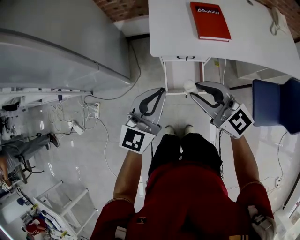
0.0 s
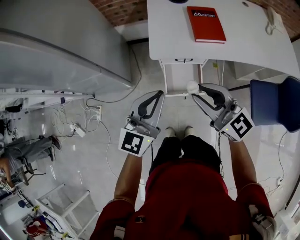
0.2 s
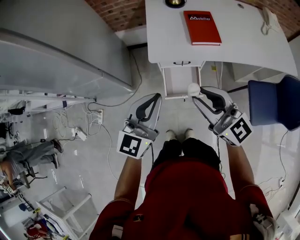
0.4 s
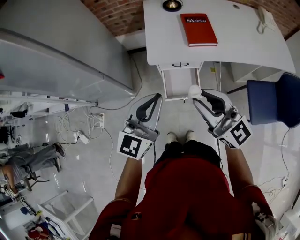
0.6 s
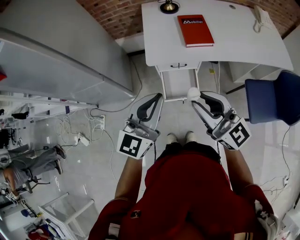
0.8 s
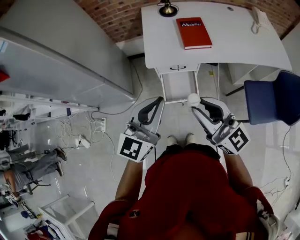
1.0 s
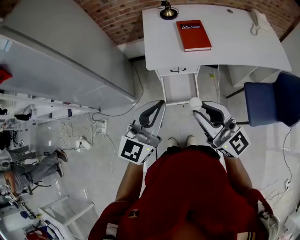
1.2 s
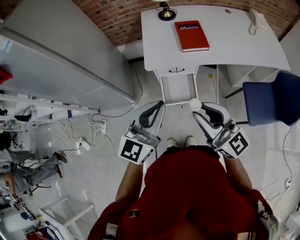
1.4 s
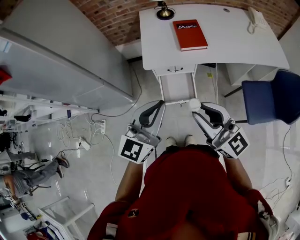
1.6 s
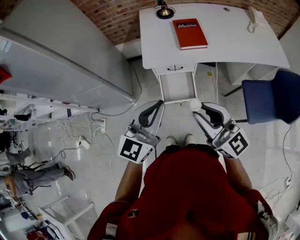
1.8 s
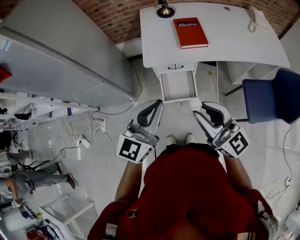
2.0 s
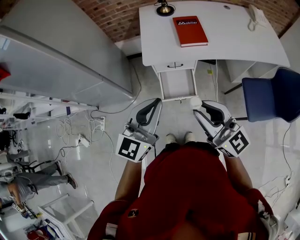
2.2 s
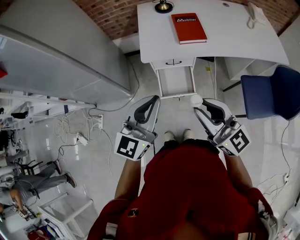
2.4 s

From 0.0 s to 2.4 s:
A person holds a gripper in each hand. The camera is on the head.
From 0.0 s to 1.2 s: The right gripper moves backward, upward and to the right, approximately 15 cm; the left gripper goes roughly 15 cm upward and backward.
From 1.2 s to 2.4 s: The grippers make only small movements.

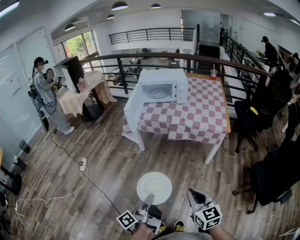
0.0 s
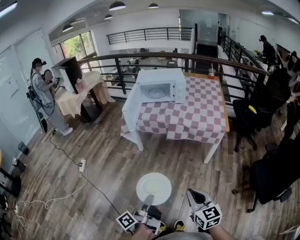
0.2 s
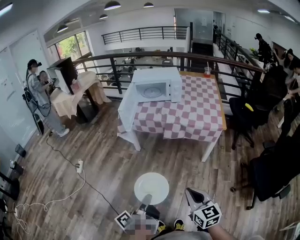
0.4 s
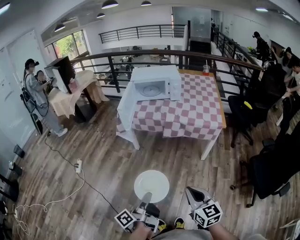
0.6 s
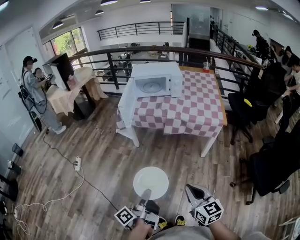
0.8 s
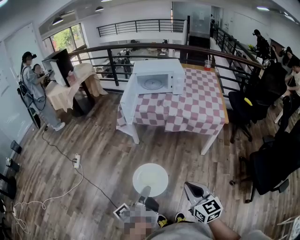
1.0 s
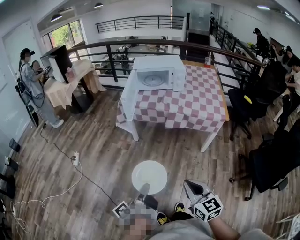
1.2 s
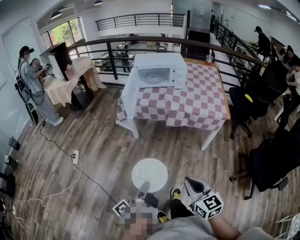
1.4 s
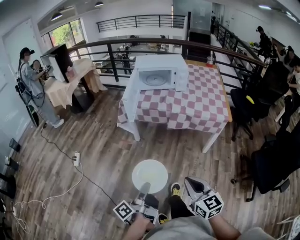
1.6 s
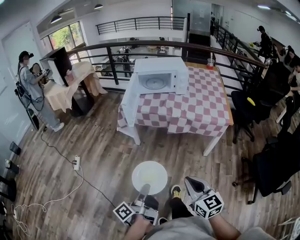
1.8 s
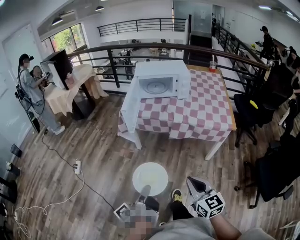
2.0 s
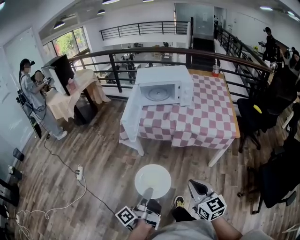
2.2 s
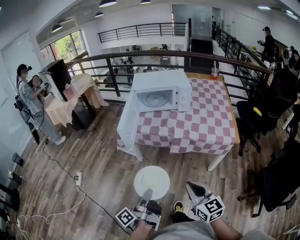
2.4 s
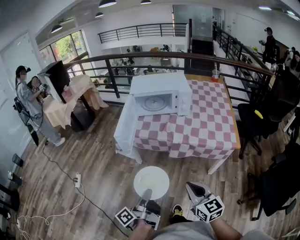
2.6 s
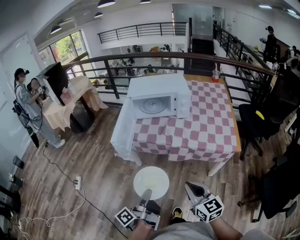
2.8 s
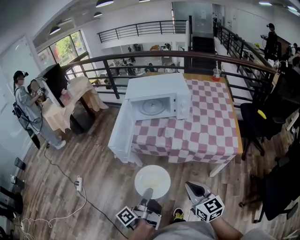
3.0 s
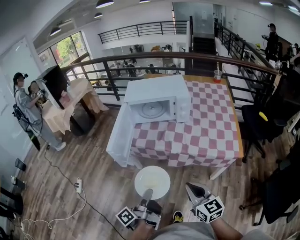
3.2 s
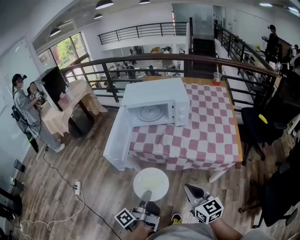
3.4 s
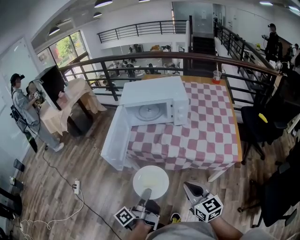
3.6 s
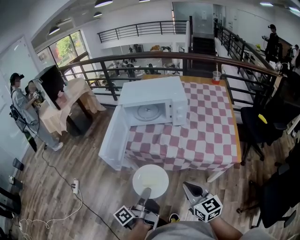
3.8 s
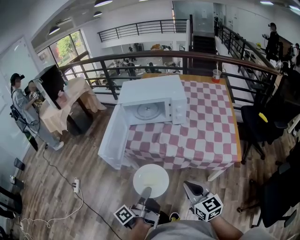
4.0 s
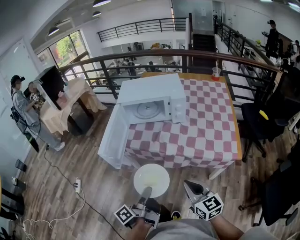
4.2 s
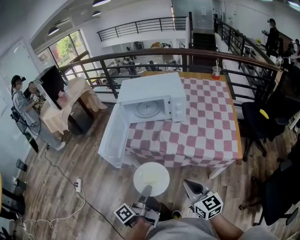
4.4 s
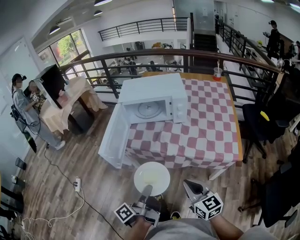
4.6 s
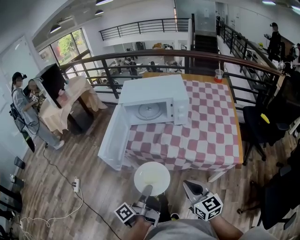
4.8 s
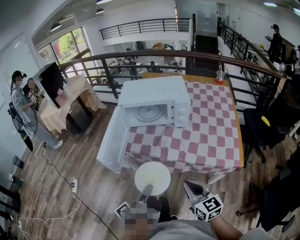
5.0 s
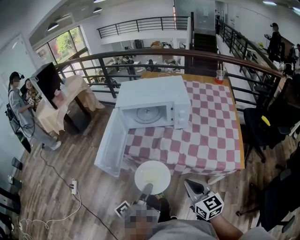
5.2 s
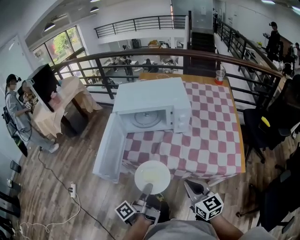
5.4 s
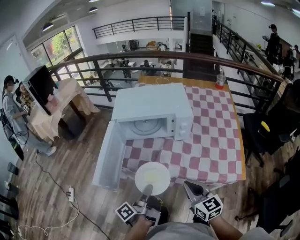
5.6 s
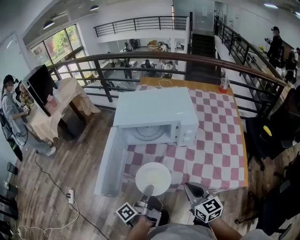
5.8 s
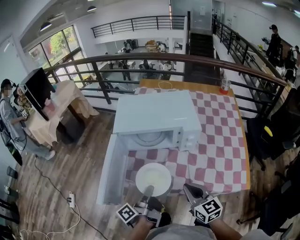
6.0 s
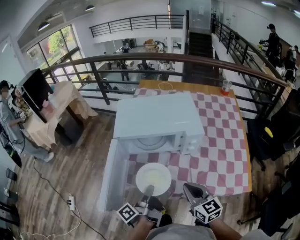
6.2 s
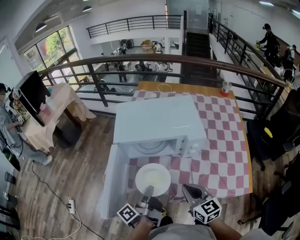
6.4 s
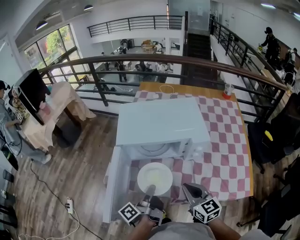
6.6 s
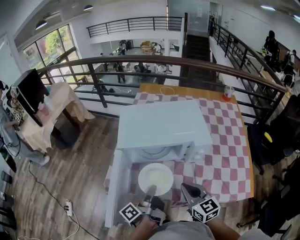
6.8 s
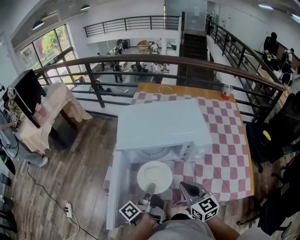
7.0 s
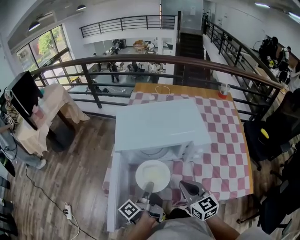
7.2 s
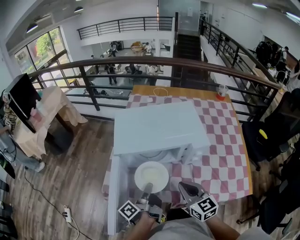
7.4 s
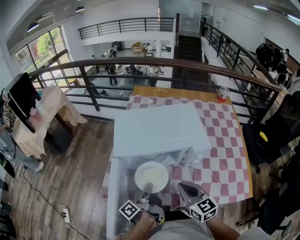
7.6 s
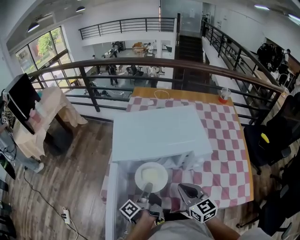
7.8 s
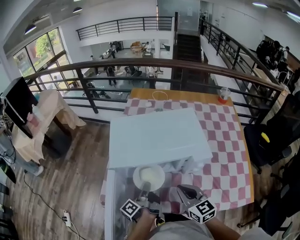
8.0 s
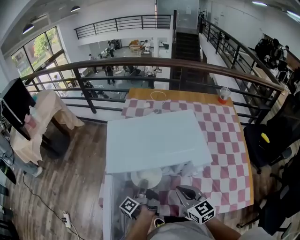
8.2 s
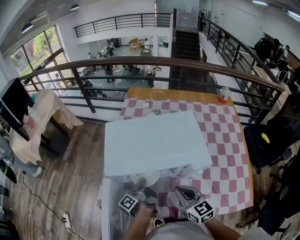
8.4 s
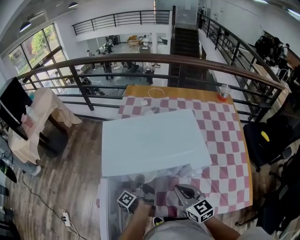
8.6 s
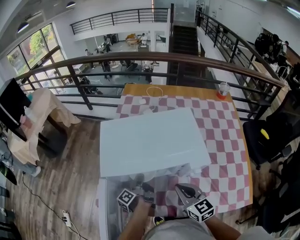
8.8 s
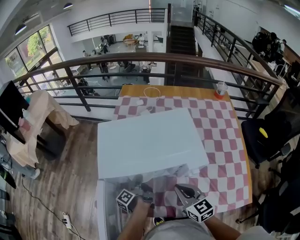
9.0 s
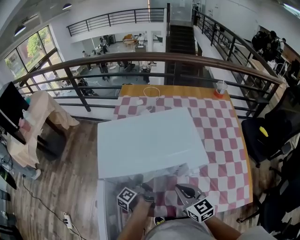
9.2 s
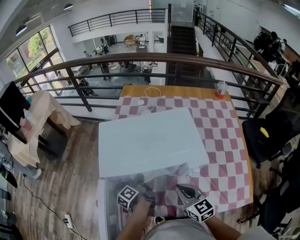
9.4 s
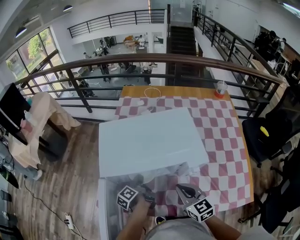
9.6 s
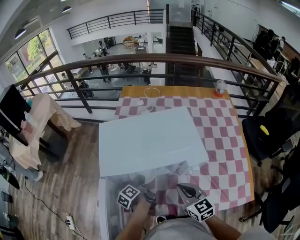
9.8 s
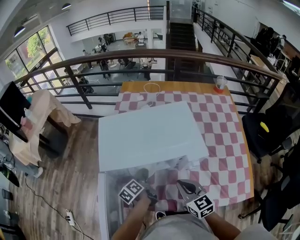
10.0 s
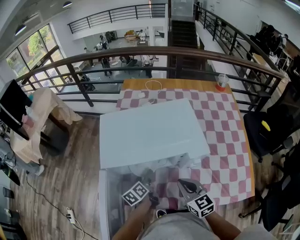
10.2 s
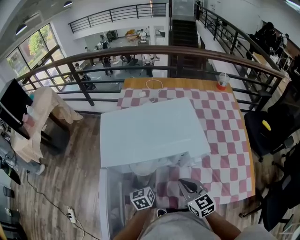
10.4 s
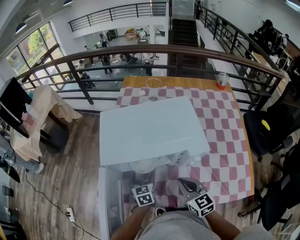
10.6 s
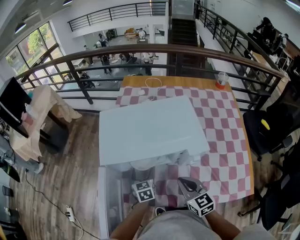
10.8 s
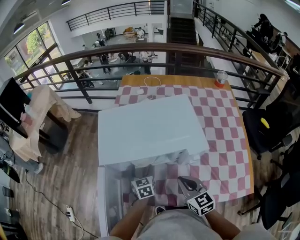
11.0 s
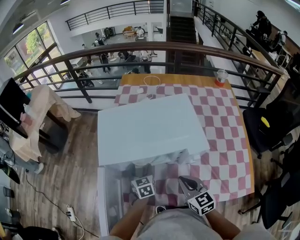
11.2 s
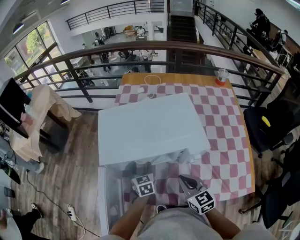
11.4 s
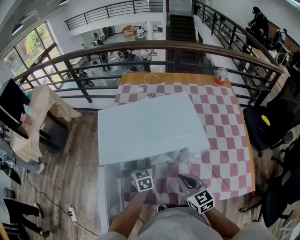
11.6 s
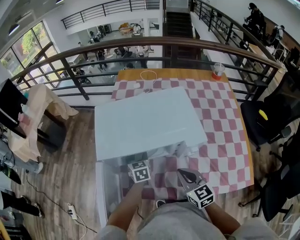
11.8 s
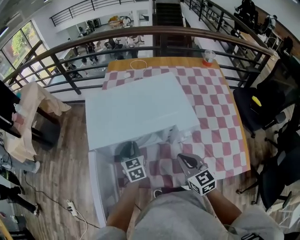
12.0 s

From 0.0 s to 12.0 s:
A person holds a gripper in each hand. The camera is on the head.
From 0.0 s to 1.6 s: The two grippers go some 10 cm to the left and forward.
From 1.6 s to 3.0 s: Both grippers move forward, roughly 30 cm.
From 3.0 s to 4.4 s: The left gripper travels forward and to the right by approximately 10 cm; the right gripper travels forward by approximately 5 cm.
From 4.4 s to 6.0 s: The grippers both shift forward by approximately 25 cm.
From 6.0 s to 7.6 s: The two grippers go roughly 15 cm forward.
From 7.6 s to 9.0 s: The left gripper travels forward and downward by approximately 20 cm; the right gripper shifts approximately 10 cm forward.
From 9.0 s to 10.4 s: The left gripper twists about 70 degrees clockwise, seen from behind, and opens.
From 10.4 s to 12.0 s: The left gripper ends up roughly 5 cm from where it was, and closes.

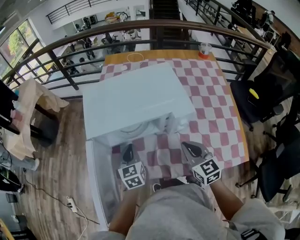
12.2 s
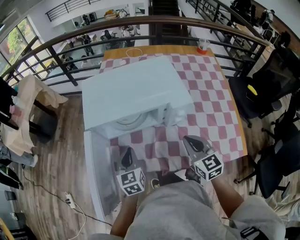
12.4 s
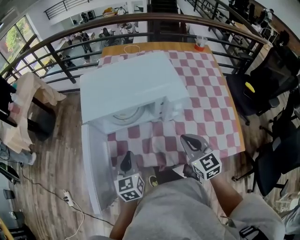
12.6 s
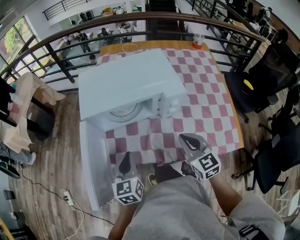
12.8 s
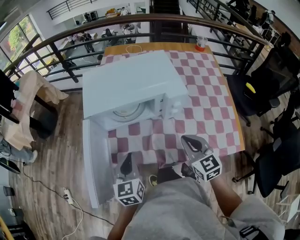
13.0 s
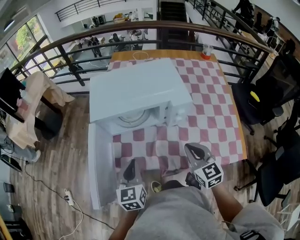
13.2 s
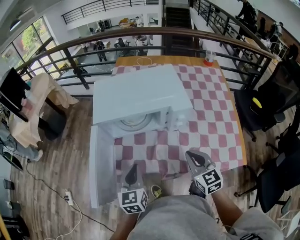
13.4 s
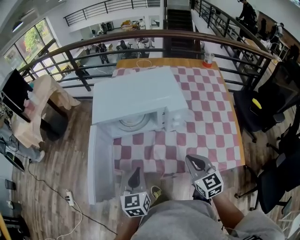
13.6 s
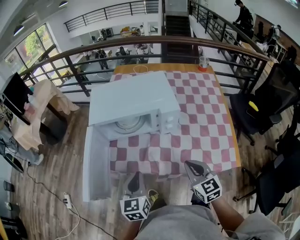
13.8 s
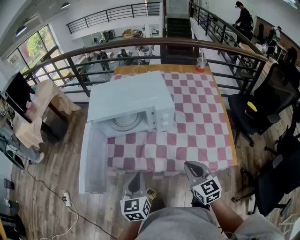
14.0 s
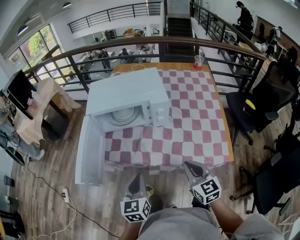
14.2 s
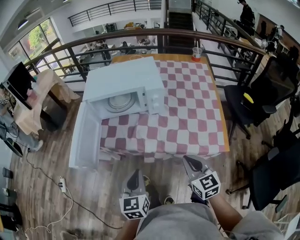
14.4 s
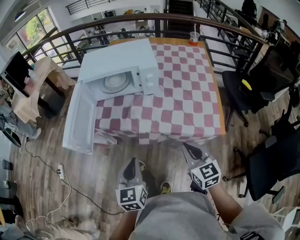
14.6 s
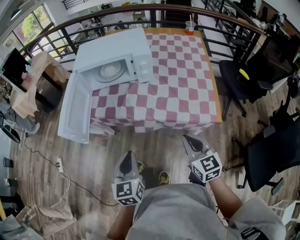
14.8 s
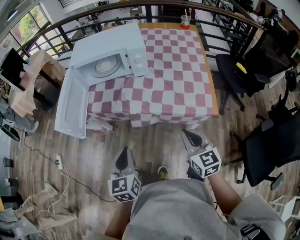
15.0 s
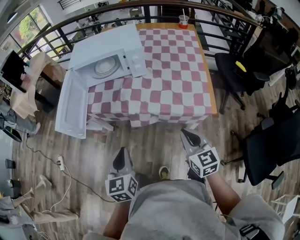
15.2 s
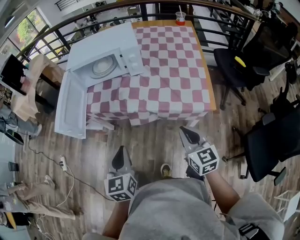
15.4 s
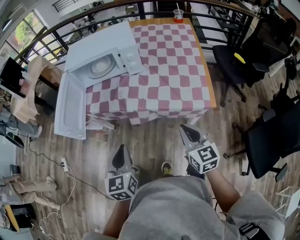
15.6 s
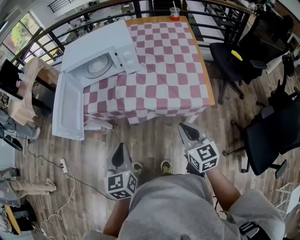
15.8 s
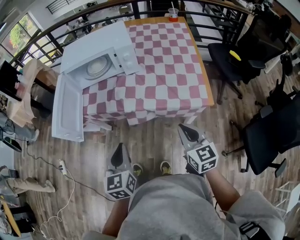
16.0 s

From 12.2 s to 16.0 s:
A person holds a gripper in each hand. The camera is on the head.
From 12.2 s to 13.4 s: The left gripper moves backward, approximately 15 cm. Meanwhile the right gripper shifts roughly 10 cm backward.
From 13.4 s to 14.8 s: The left gripper is displaced backward by approximately 30 cm. The right gripper travels backward and to the right by roughly 30 cm.
From 14.8 s to 16.0 s: There are only small adjustments of the grippers.

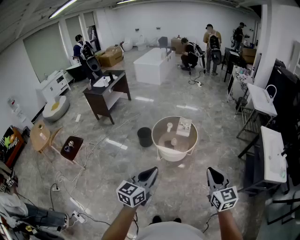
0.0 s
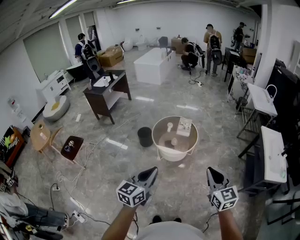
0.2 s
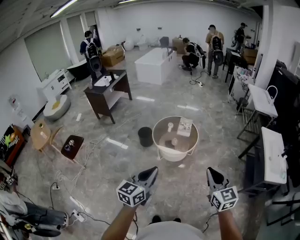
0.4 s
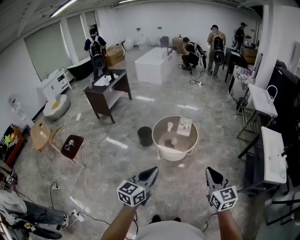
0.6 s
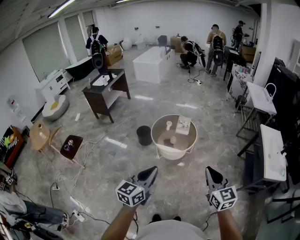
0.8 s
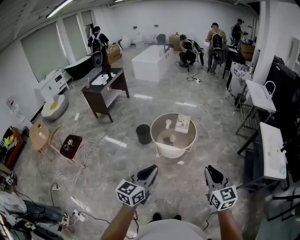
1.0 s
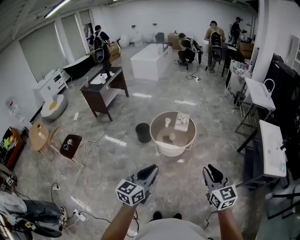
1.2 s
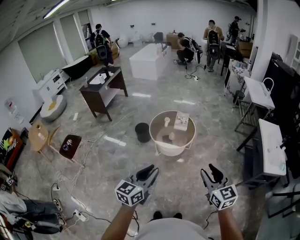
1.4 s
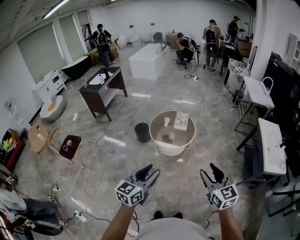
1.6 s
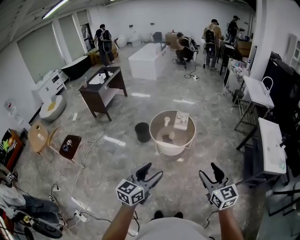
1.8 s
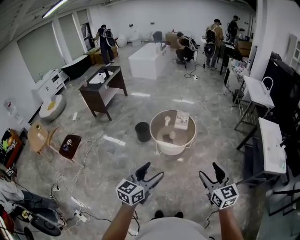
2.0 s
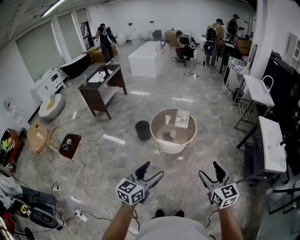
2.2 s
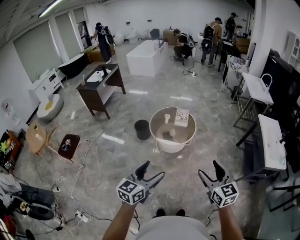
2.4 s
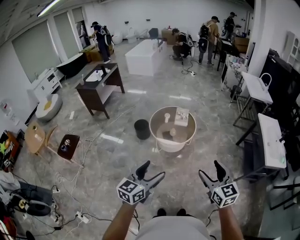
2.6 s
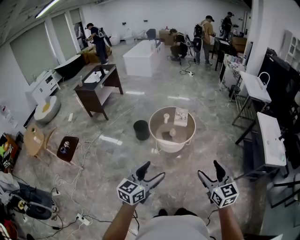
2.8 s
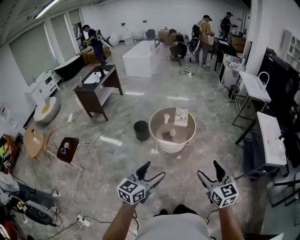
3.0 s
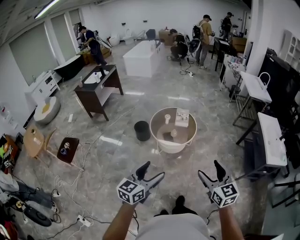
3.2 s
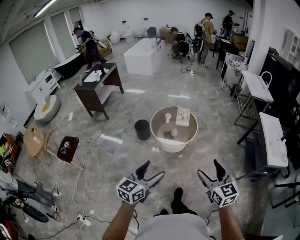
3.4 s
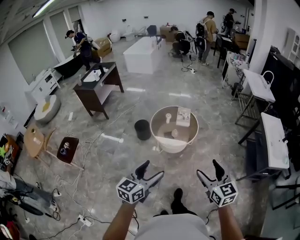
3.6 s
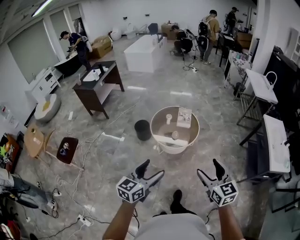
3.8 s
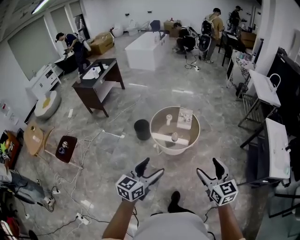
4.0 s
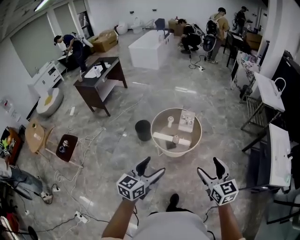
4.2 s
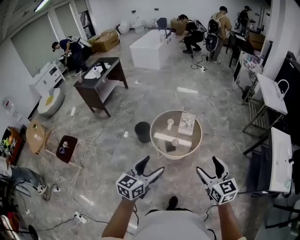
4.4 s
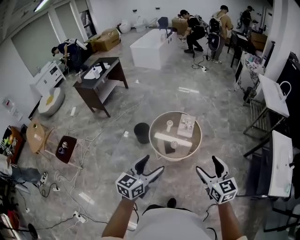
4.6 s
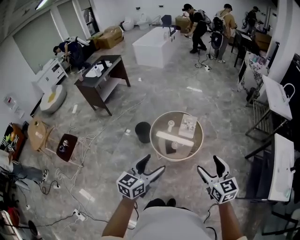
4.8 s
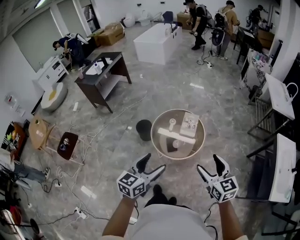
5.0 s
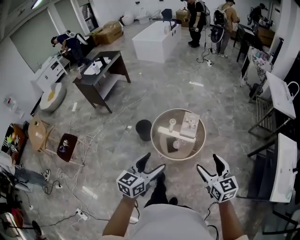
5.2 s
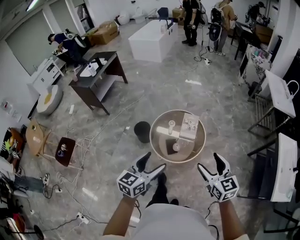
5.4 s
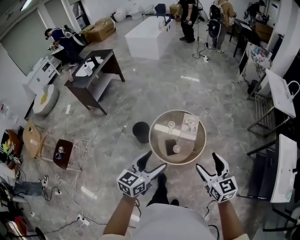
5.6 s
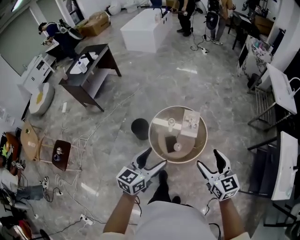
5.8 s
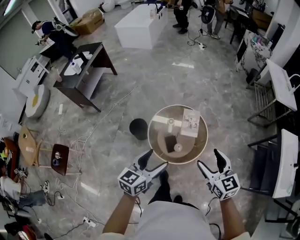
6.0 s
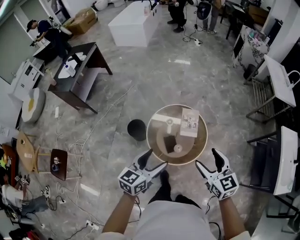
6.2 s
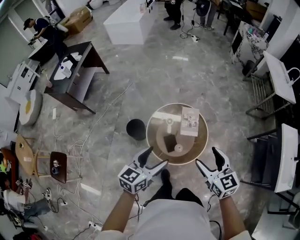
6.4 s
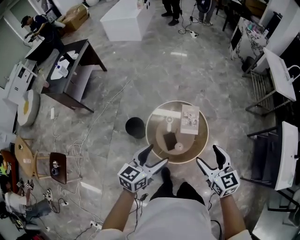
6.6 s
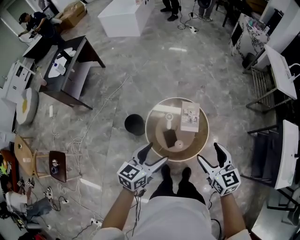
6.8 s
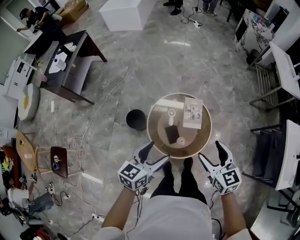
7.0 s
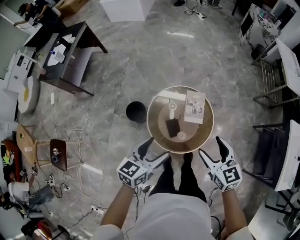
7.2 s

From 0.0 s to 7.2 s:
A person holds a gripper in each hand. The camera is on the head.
From 0.0 s to 1.4 s: The right gripper opens its fingers.
From 1.4 s to 2.8 s: Both grippers move to the left, approximately 5 cm. The left gripper opens up; the right gripper opens its fingers.
From 2.8 s to 4.4 s: Both grippers travel together forward, about 25 cm.
From 4.4 s to 5.8 s: Both grippers travel together forward, roughly 25 cm.
From 5.8 s to 7.2 s: Both grippers move forward and downward, roughly 20 cm.
